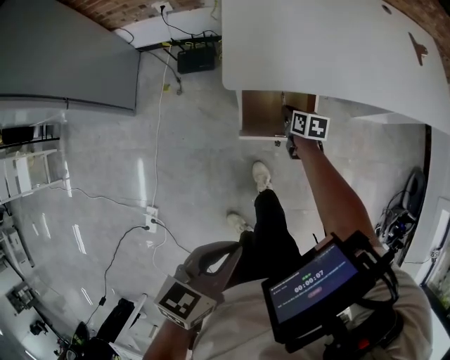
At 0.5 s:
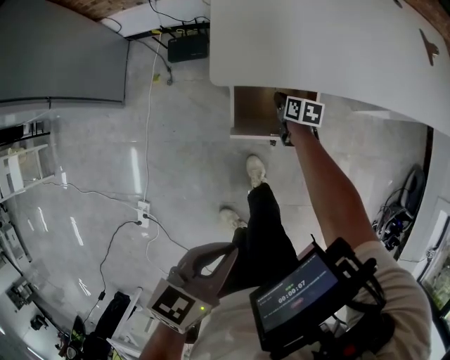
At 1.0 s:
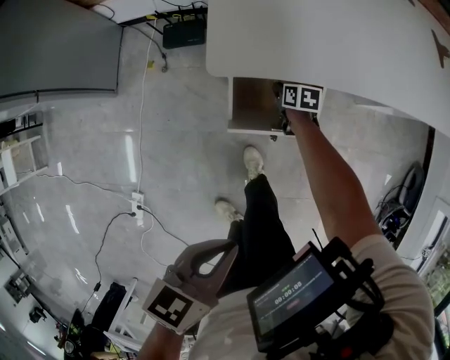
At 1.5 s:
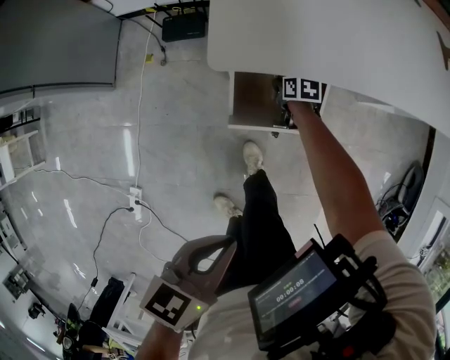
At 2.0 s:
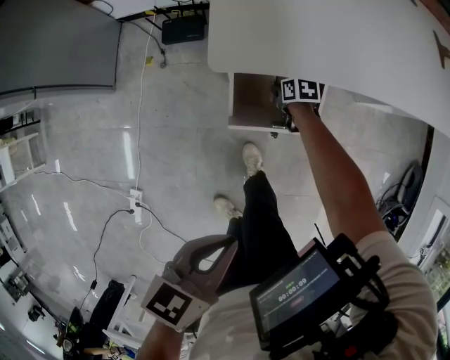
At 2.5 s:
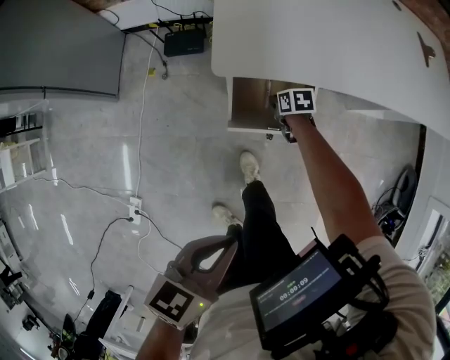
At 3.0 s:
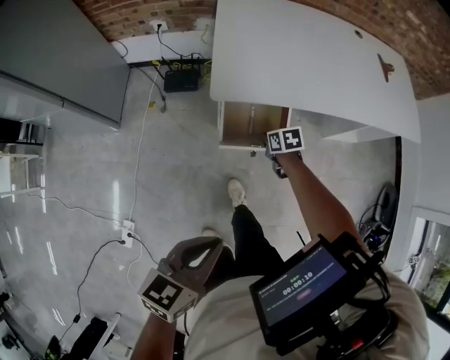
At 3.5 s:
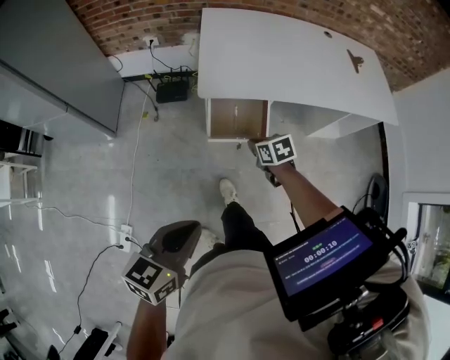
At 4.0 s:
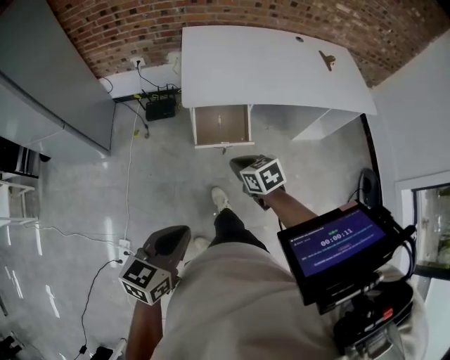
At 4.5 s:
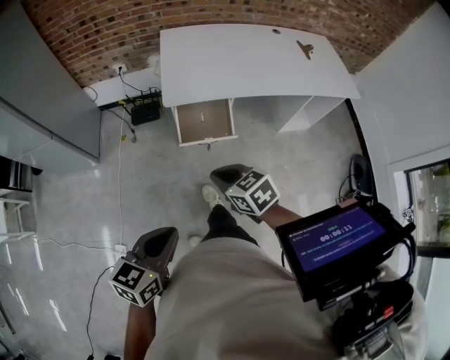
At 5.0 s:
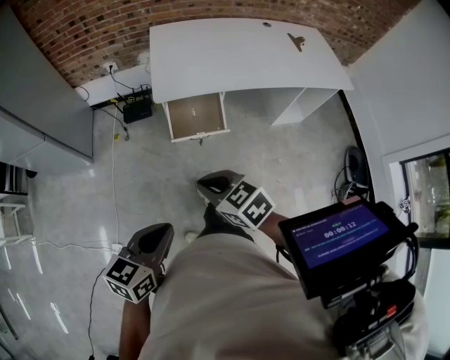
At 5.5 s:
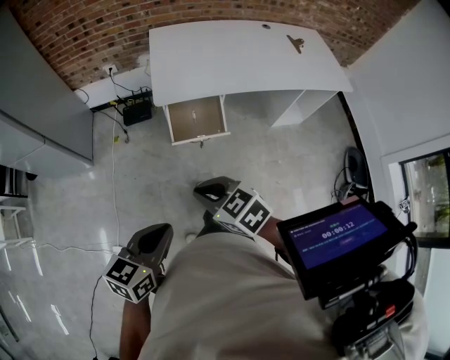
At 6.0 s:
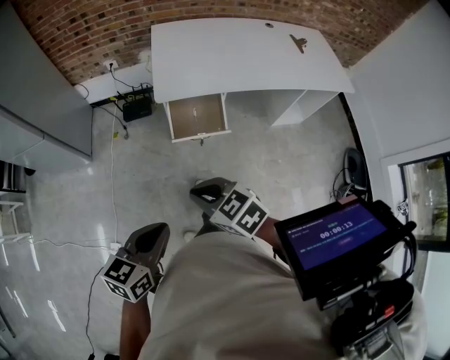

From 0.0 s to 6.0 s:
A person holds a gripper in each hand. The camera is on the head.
From 0.0 s to 2.0 s: The right gripper is displaced downward by about 15 cm; the left gripper shifts approximately 10 cm downward and forward.
From 2.0 s to 4.0 s: The right gripper goes roughly 50 cm upward and backward, and changes its angle by about 30 degrees, while the left gripper moves backward and upward, roughly 25 cm, and swivels roughly 20 degrees.
From 4.0 s to 6.0 s: The right gripper is displaced backward, upward and to the left by about 20 cm, and changes its angle by roughly 20 degrees.

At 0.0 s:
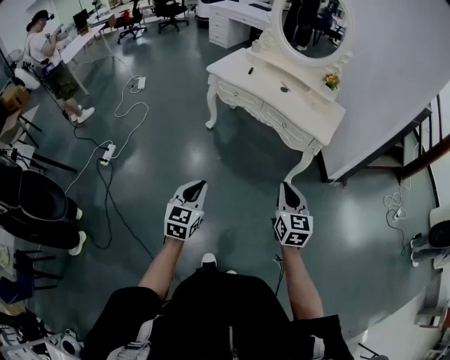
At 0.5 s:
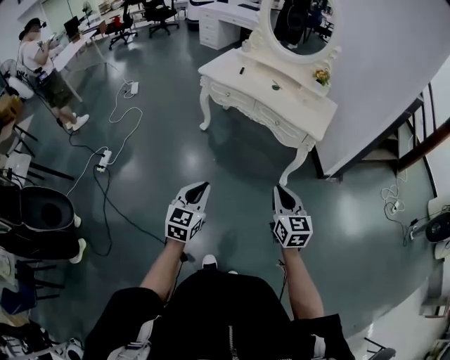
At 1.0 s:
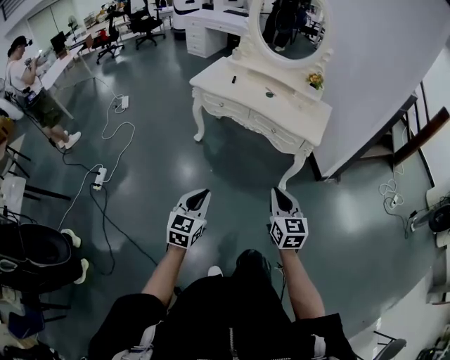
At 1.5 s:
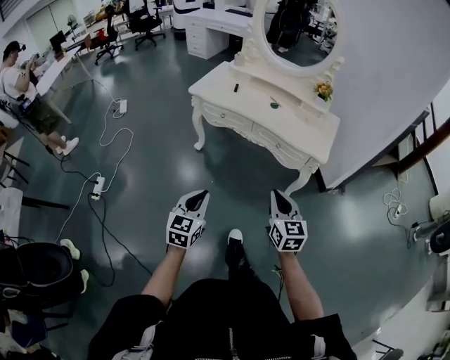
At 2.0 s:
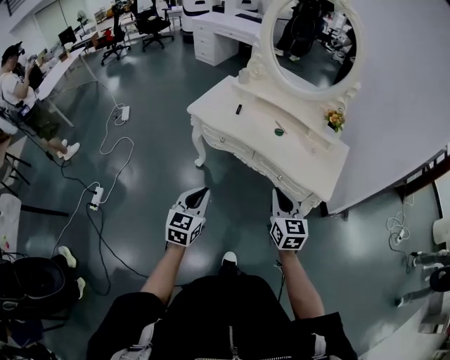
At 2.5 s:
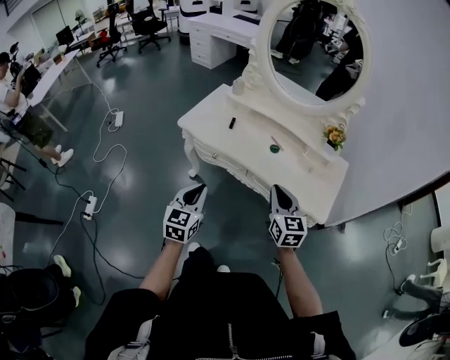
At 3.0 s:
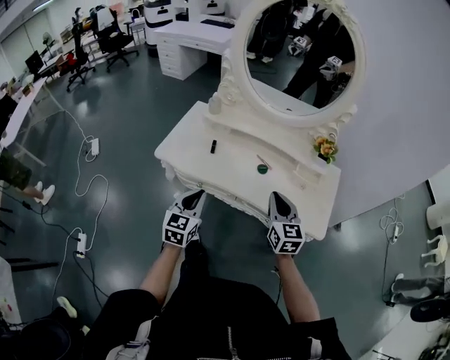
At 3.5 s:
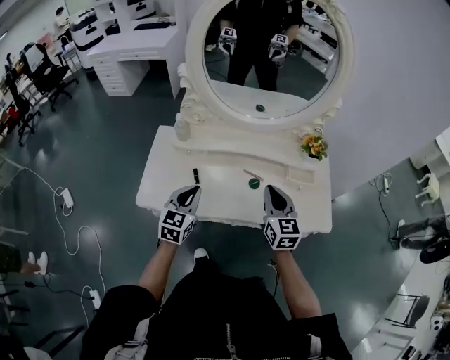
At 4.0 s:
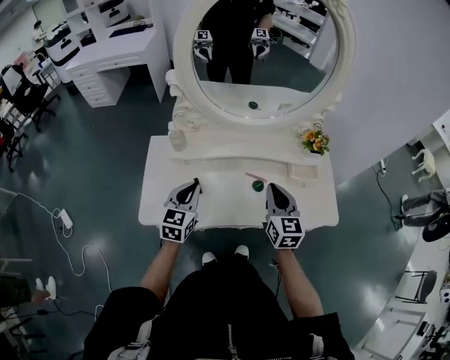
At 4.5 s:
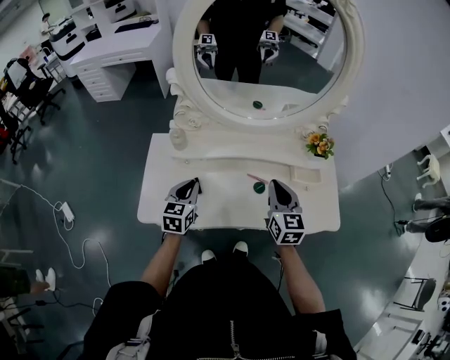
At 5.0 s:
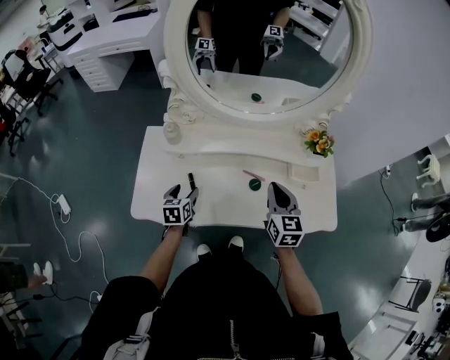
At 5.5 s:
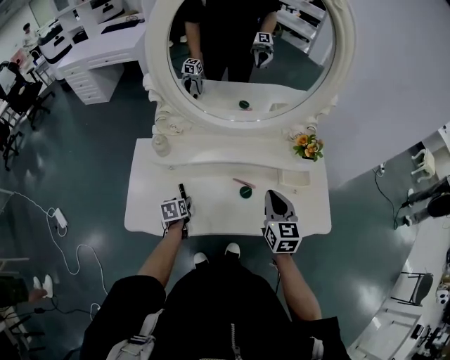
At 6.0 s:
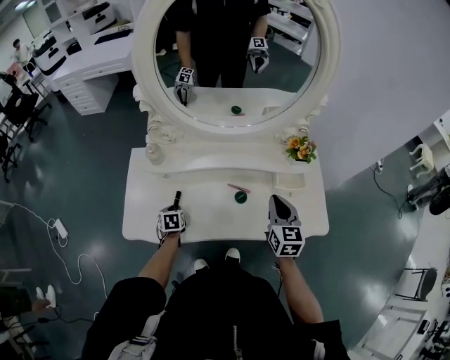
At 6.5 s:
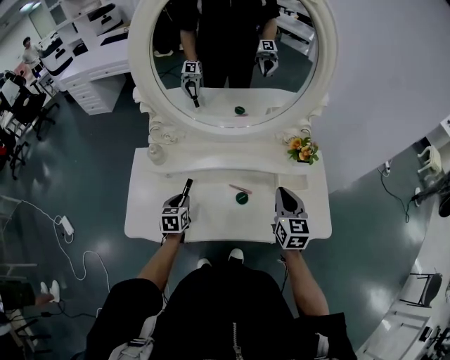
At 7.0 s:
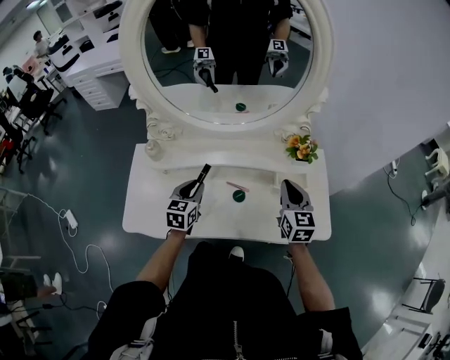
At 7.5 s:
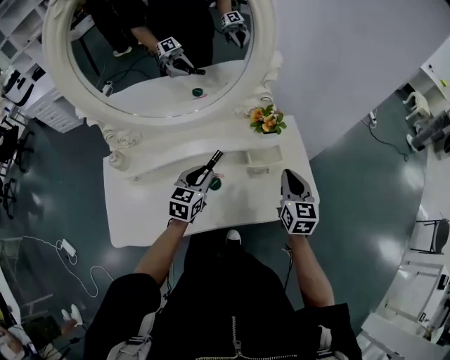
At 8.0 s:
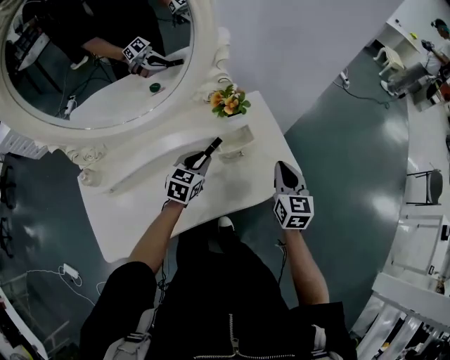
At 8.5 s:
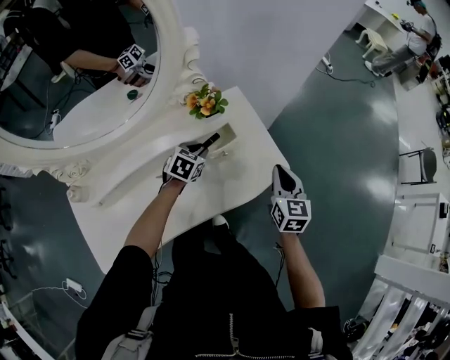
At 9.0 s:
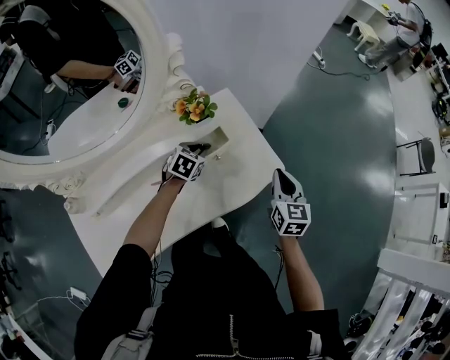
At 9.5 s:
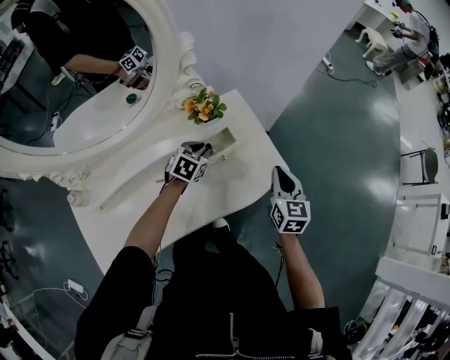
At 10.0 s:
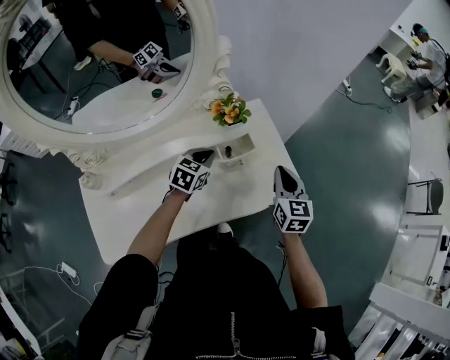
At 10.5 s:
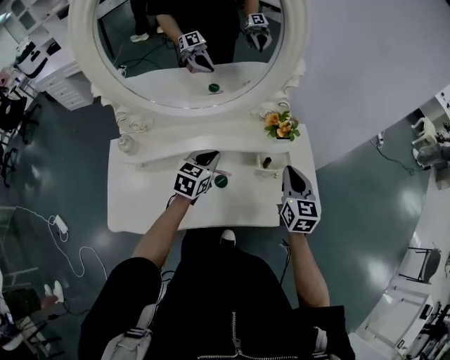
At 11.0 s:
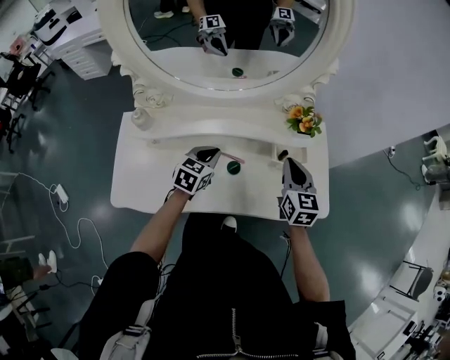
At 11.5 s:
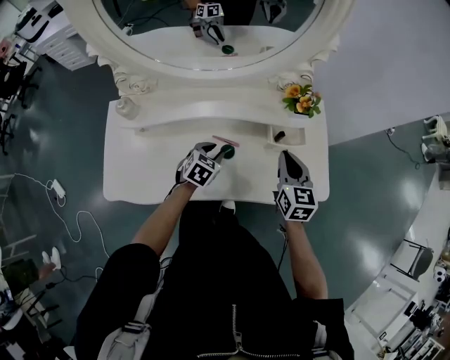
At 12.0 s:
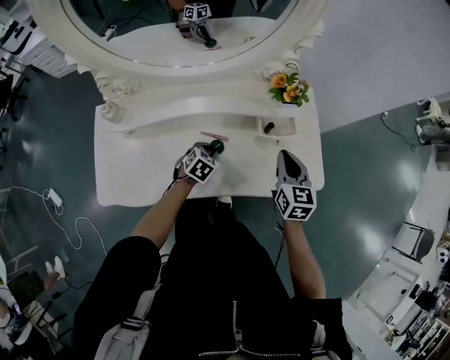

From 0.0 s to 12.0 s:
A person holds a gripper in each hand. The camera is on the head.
From 0.0 s to 2.0 s: Both grippers travel together forward, approximately 35 cm.
From 2.0 s to 4.0 s: The left gripper ends up some 50 cm from where it was, and swivels some 30 degrees. Meanwhile the right gripper shifts by approximately 40 cm, and swivels approximately 30 degrees.
From 4.0 s to 6.0 s: The left gripper is displaced downward by roughly 25 cm, tilts its fingers some 40 degrees downward, and opens and closes again; the right gripper goes some 10 cm to the right.
From 6.0 s to 8.0 s: The left gripper changes place by about 40 cm, and swivels approximately 60 degrees; the right gripper shifts by about 20 cm, and swivels approximately 20 degrees.
From 8.0 s to 10.0 s: The right gripper travels to the right and back again, about 10 cm each way.
From 10.0 s to 12.0 s: The left gripper is displaced downward, to the left and backward by roughly 20 cm, and changes its angle by about 20 degrees; the right gripper moves to the left, roughly 10 cm.

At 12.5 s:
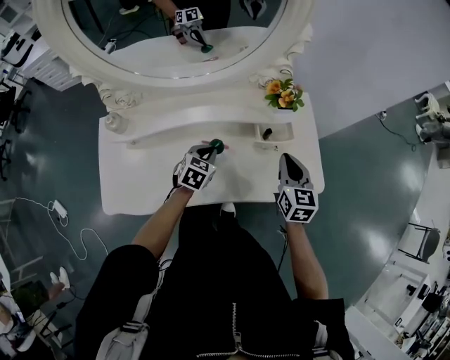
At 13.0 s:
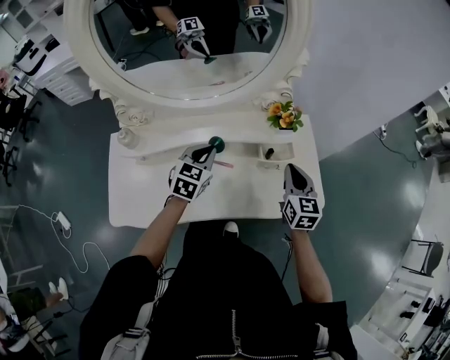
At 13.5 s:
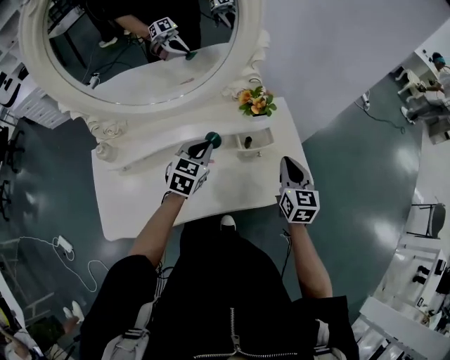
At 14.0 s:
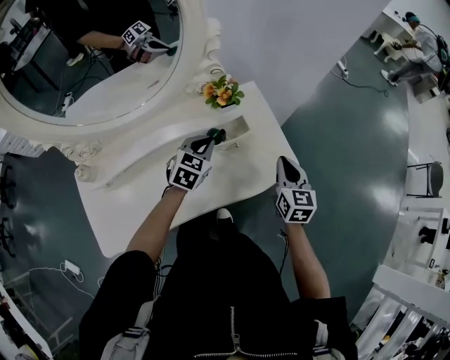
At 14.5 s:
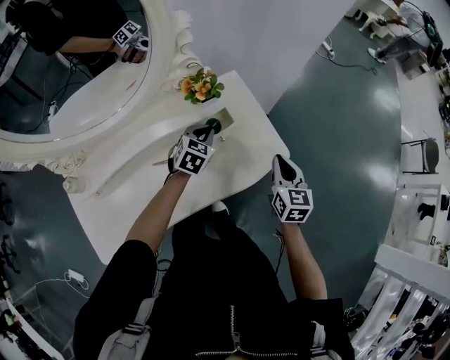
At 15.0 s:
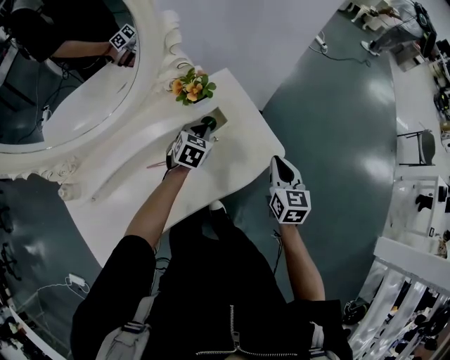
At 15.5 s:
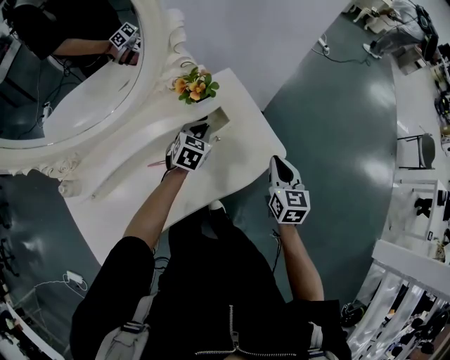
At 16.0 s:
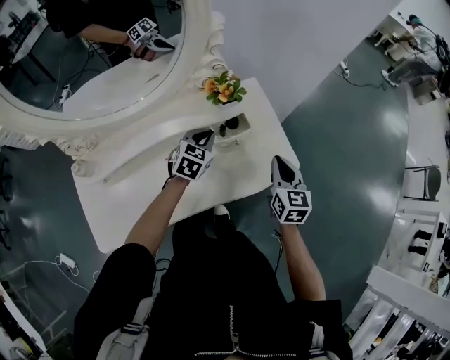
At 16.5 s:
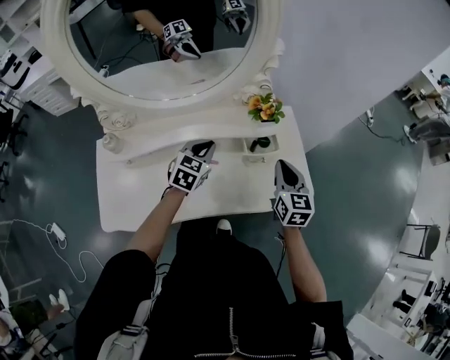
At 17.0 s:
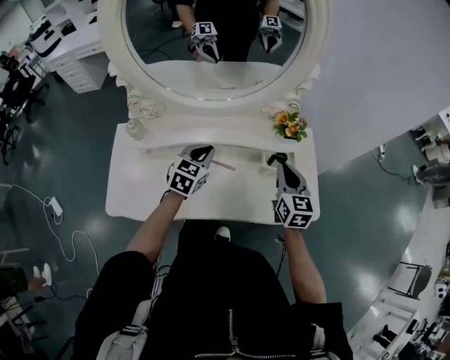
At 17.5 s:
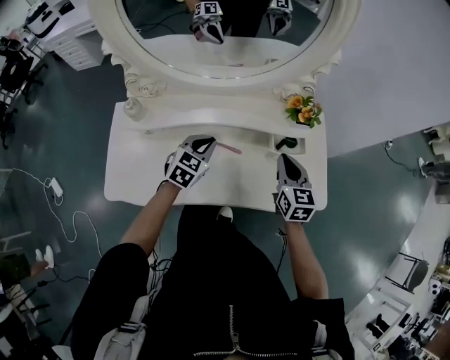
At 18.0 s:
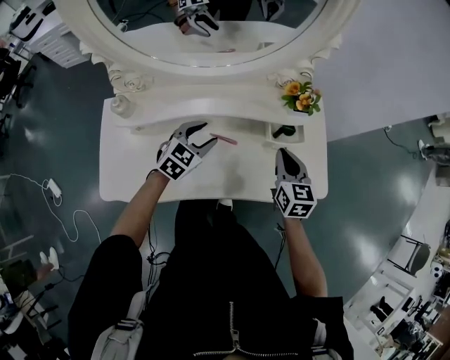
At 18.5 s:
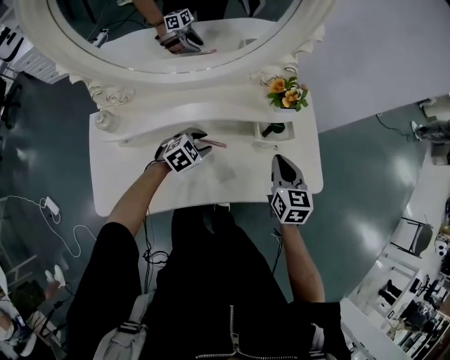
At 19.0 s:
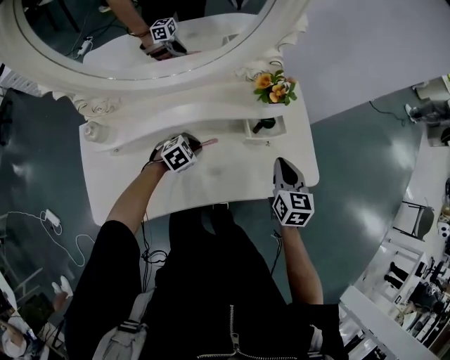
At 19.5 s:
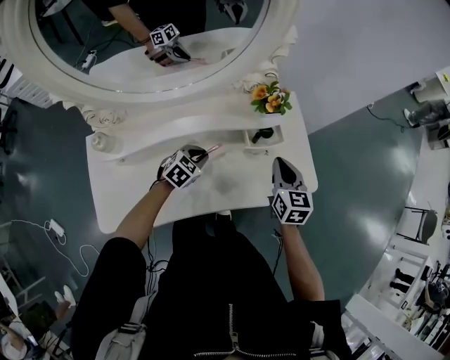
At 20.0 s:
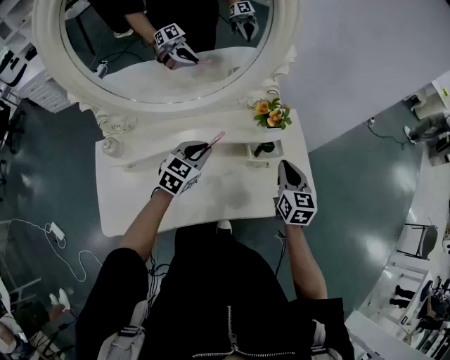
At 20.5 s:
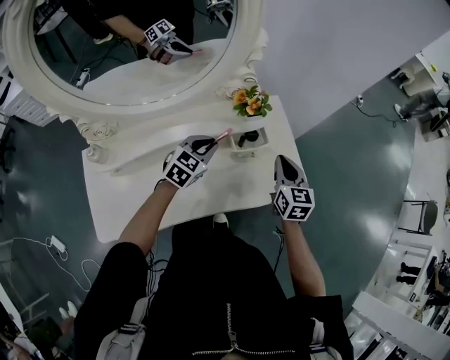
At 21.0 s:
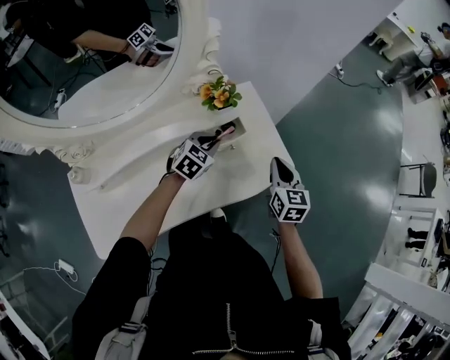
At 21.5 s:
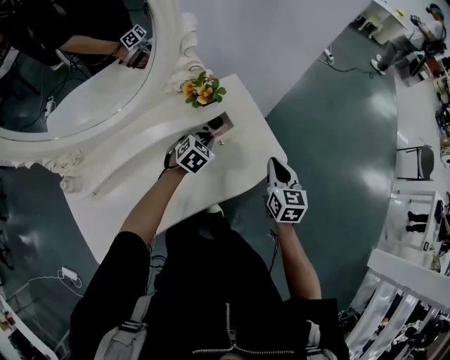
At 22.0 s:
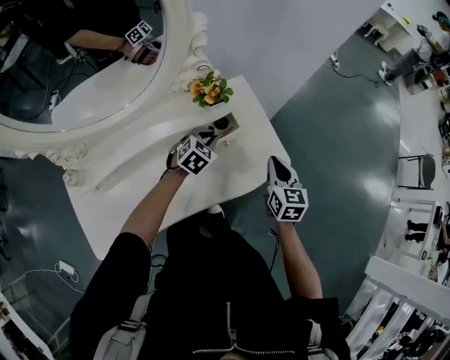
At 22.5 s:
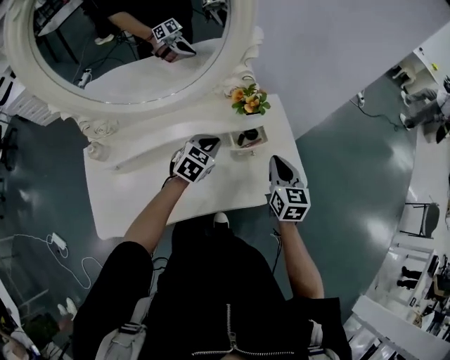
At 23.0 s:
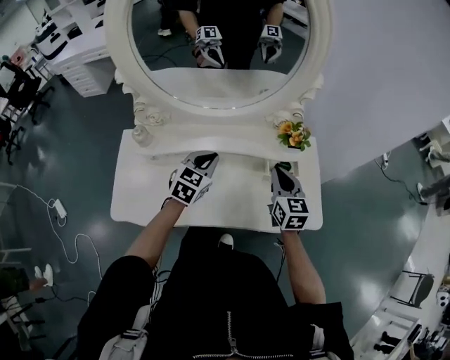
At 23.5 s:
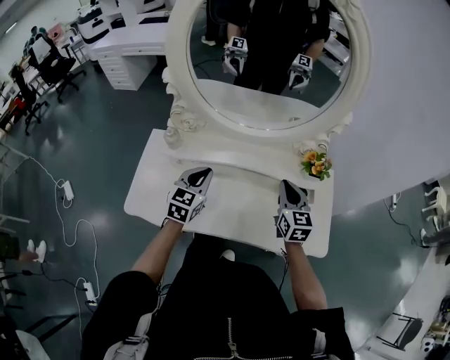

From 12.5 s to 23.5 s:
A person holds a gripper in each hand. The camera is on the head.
From 12.5 s to 14.5 s: The left gripper travels to the right and forward by roughly 20 cm, and changes its angle by some 20 degrees, while the right gripper goes about 15 cm to the right, and changes its angle by approximately 20 degrees.
From 14.5 s to 16.0 s: The left gripper ends up roughly 5 cm from where it was. The right gripper shifts by approximately 5 cm.
From 16.0 s to 18.0 s: The grippers both shift to the left by approximately 15 cm. The right gripper swivels approximately 20 degrees; the left gripper opens up.
From 18.0 s to 20.0 s: The right gripper goes some 5 cm to the right; the left gripper travels downward and back again, roughly 15 cm each way, and closes.
From 20.0 s to 21.5 s: The left gripper is displaced to the right, downward and forward by about 20 cm, and swivels about 30 degrees. The right gripper is displaced to the right by roughly 15 cm.
From 21.5 s to 23.5 s: The right gripper changes place by roughly 30 cm, and turns by approximately 40 degrees. The left gripper moves roughly 40 cm, and angles its fingers upward, by roughly 30 degrees.
